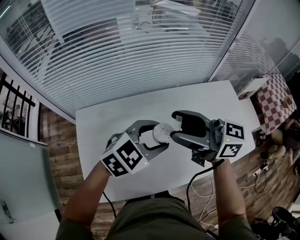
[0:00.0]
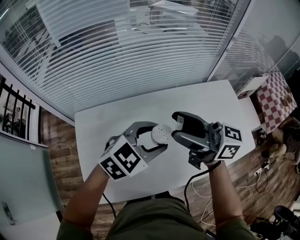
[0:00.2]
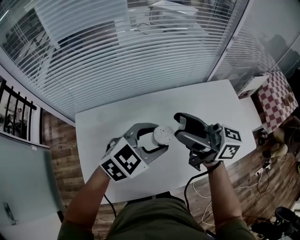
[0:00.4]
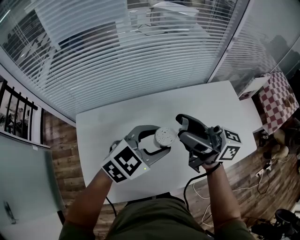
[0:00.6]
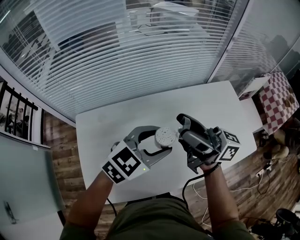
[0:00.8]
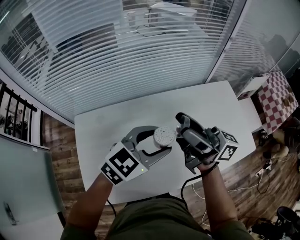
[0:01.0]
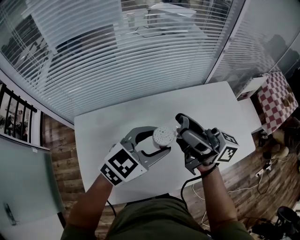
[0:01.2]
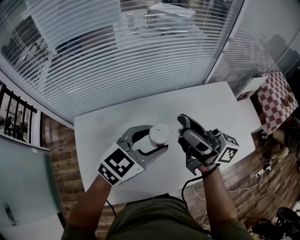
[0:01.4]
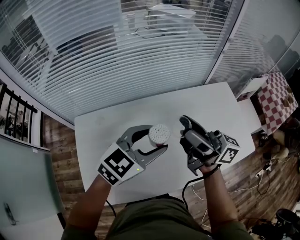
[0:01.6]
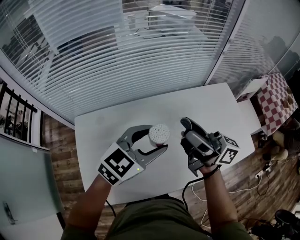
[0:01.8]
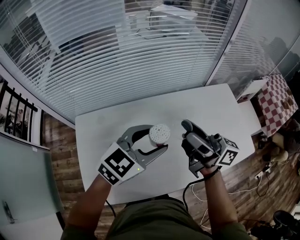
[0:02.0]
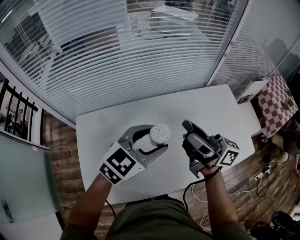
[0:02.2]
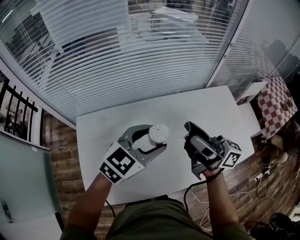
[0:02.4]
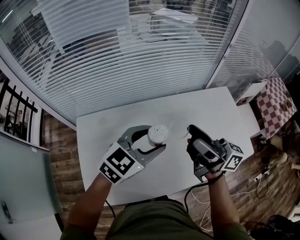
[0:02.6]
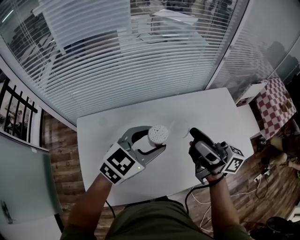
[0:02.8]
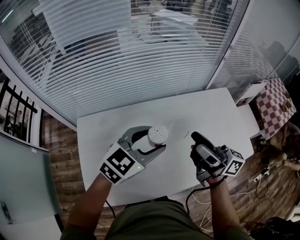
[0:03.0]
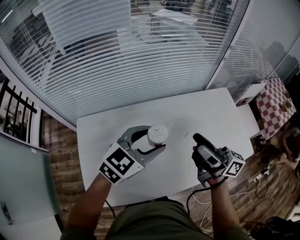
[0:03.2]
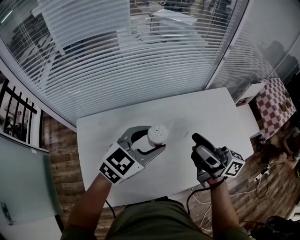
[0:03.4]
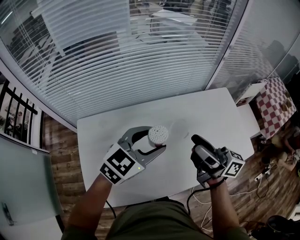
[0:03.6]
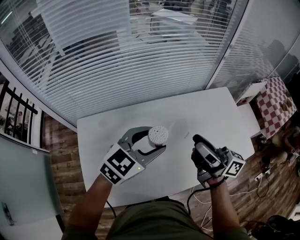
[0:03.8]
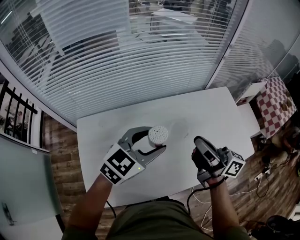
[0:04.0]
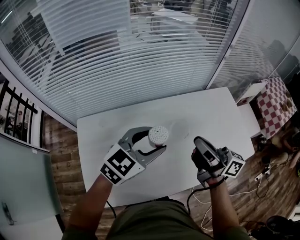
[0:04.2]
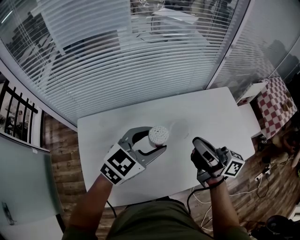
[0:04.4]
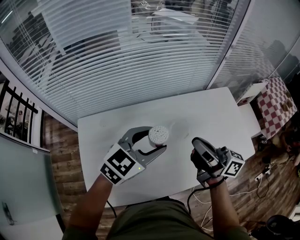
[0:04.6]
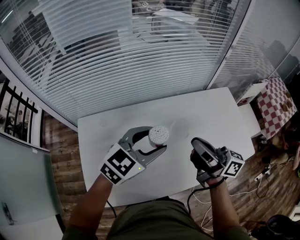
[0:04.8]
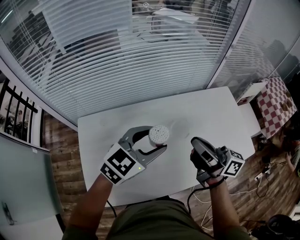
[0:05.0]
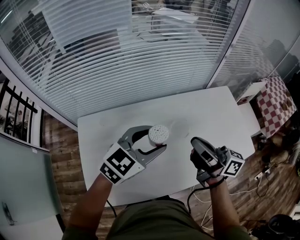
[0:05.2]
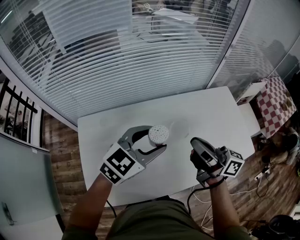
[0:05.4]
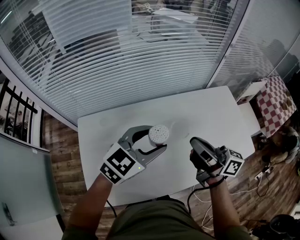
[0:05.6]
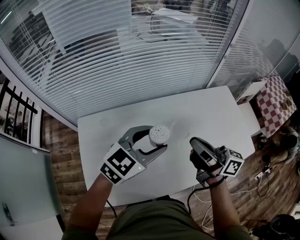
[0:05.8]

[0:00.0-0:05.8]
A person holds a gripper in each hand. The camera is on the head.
0:00.0 to 0:01.4: The right gripper shifts by about 5 cm, and rotates roughly 30 degrees.
0:01.4 to 0:02.8: The grippers stay close to where they were, moving slightly.
0:02.8 to 0:04.4: The right gripper closes.
0:04.4 to 0:05.8: The grippers stay close to where they were, moving slightly.

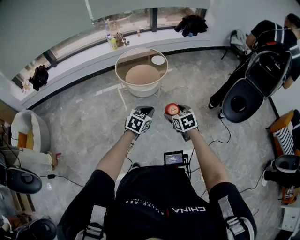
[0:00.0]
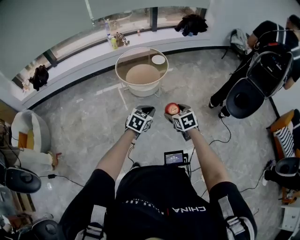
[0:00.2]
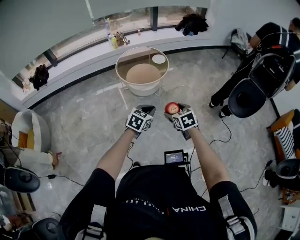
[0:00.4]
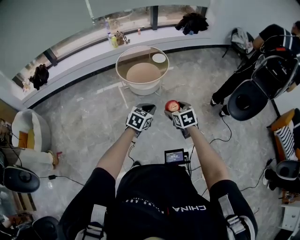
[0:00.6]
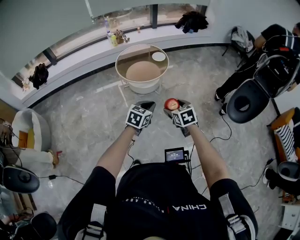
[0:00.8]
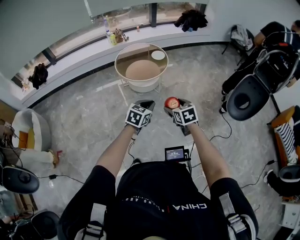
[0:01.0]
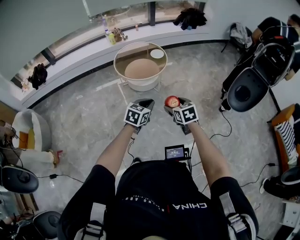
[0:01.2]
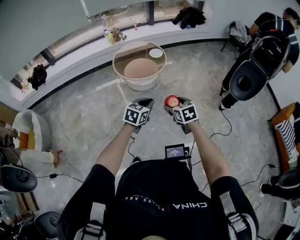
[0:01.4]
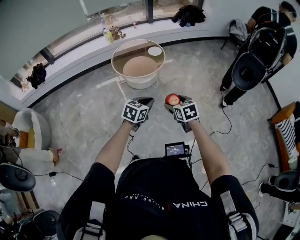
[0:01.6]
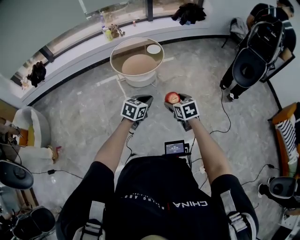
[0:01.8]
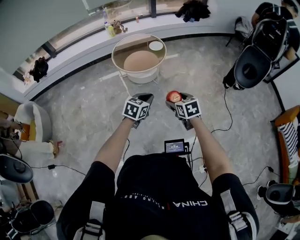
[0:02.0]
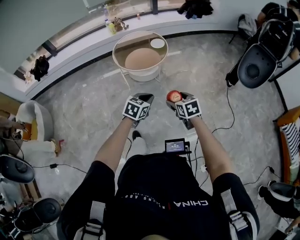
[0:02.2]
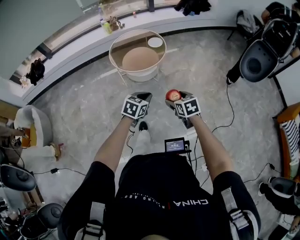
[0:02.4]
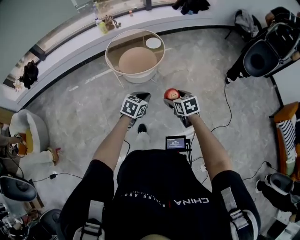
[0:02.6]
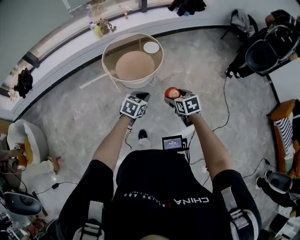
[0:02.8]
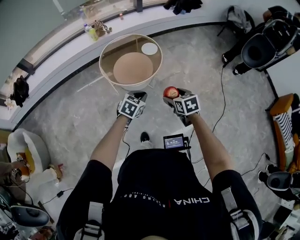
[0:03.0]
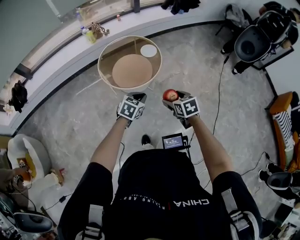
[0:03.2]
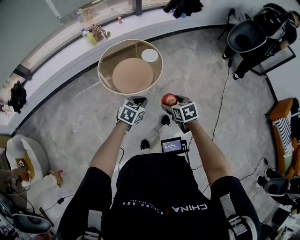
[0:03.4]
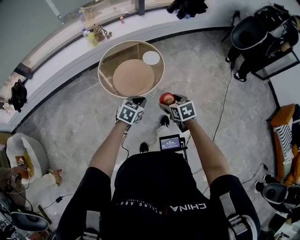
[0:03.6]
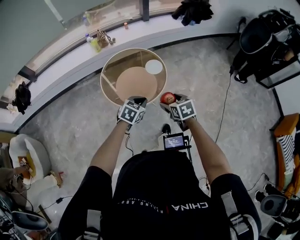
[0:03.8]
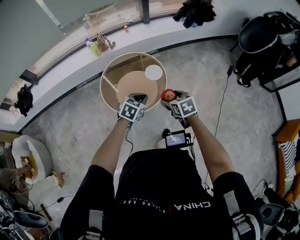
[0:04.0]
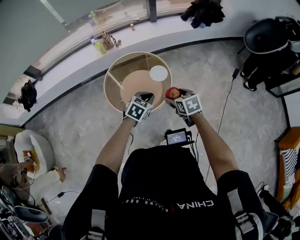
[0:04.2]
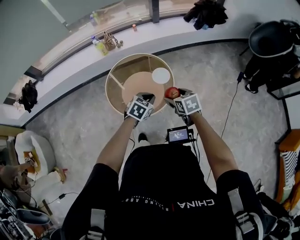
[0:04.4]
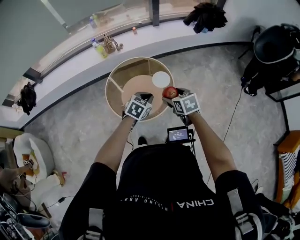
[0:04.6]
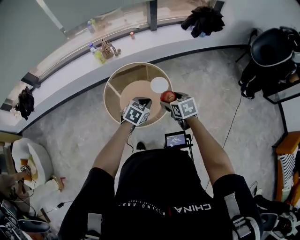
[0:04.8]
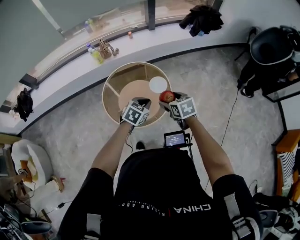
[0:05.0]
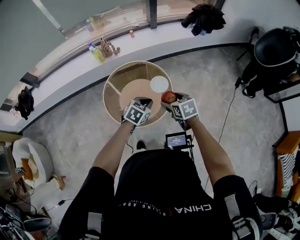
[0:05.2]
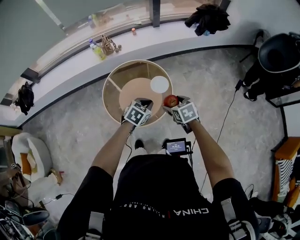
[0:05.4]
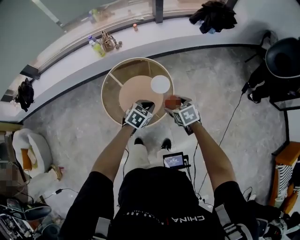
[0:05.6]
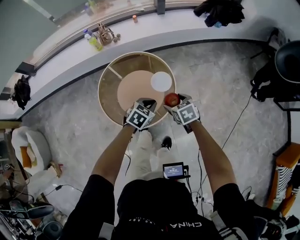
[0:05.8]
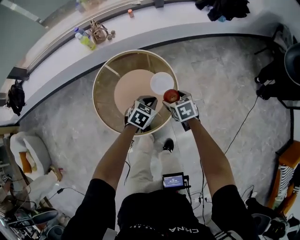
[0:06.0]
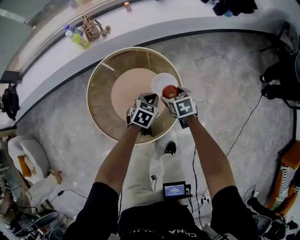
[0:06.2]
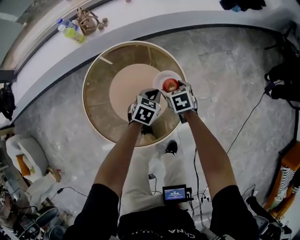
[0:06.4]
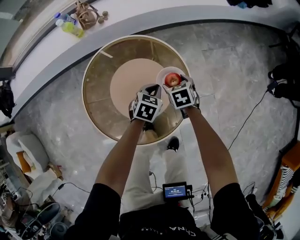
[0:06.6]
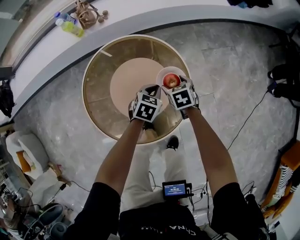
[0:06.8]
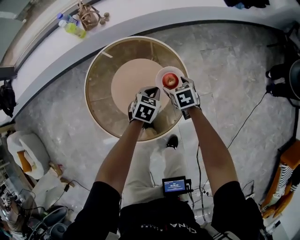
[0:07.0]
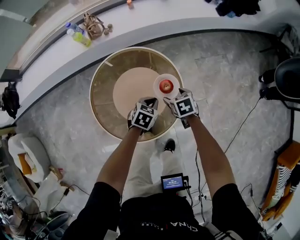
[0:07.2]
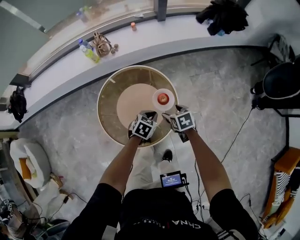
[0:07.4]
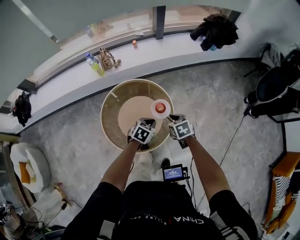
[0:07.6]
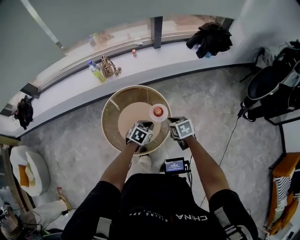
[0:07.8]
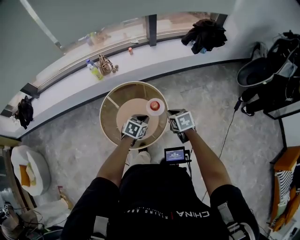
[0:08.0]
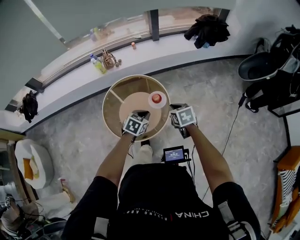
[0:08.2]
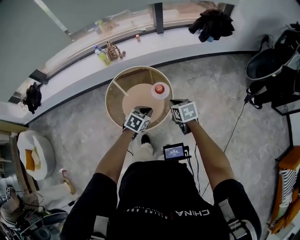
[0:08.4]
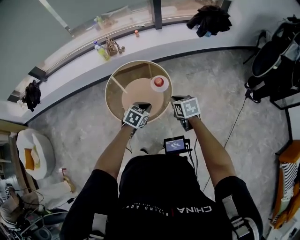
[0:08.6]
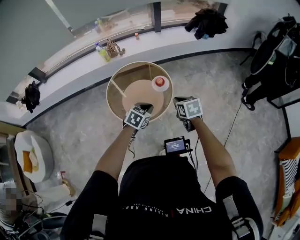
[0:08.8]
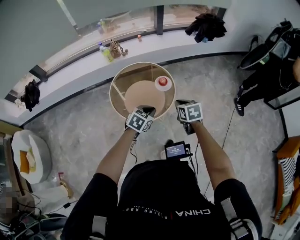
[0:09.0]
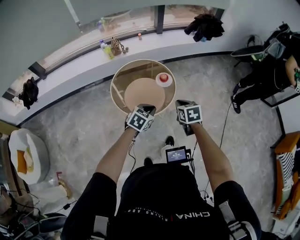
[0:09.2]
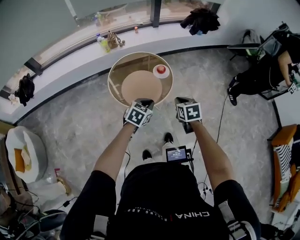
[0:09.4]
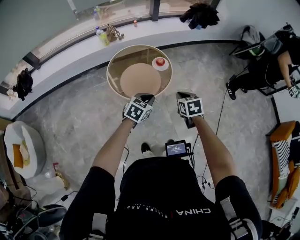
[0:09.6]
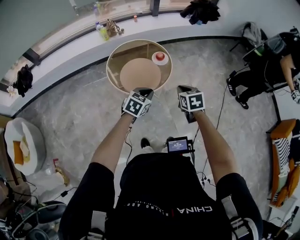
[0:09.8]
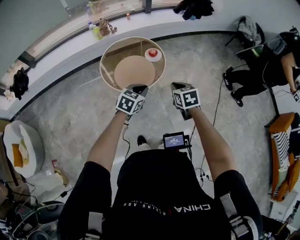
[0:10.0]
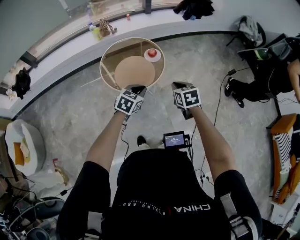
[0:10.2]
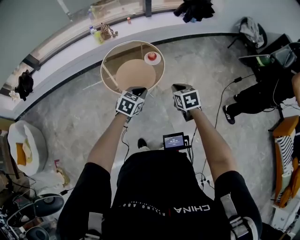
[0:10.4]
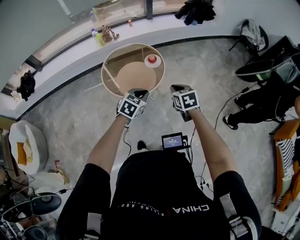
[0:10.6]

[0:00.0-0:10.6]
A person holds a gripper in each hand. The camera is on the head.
0:00.0 to 0:01.6: The grippers move only a little.
0:01.6 to 0:03.0: The grippers both shift forward by some 30 cm.
0:03.0 to 0:04.6: Both grippers travel together forward, about 40 cm.
0:04.6 to 0:06.0: The grippers both shift downward and forward by approximately 30 cm.
0:06.0 to 0:07.6: The left gripper goes downward and returns, roughly 20 cm each way; the right gripper shifts approximately 15 cm upward, and closes.
0:07.6 to 0:09.0: The right gripper travels backward and upward by roughly 30 cm; the left gripper shifts some 30 cm backward.
0:09.0 to 0:10.6: Both grippers move backward and to the right, roughly 15 cm.

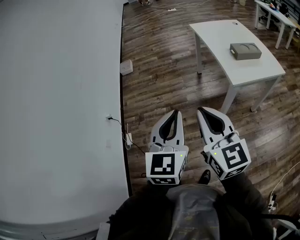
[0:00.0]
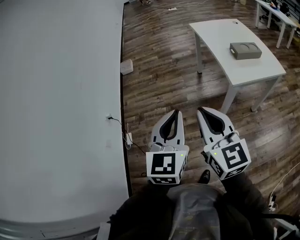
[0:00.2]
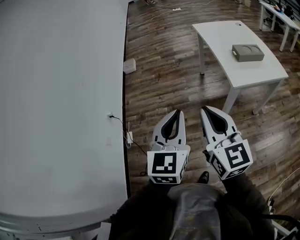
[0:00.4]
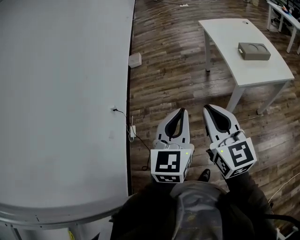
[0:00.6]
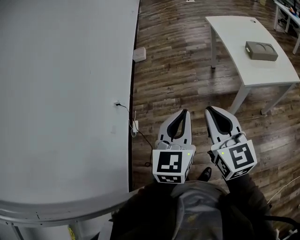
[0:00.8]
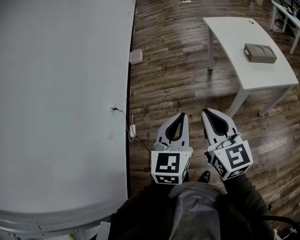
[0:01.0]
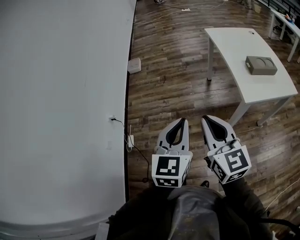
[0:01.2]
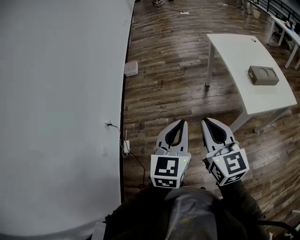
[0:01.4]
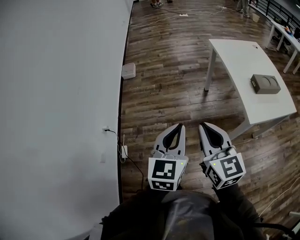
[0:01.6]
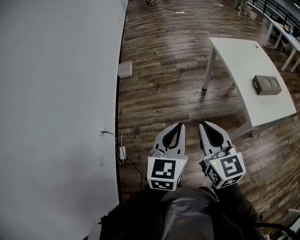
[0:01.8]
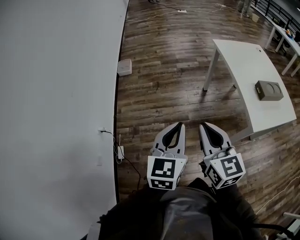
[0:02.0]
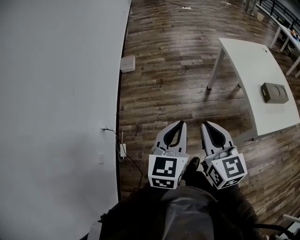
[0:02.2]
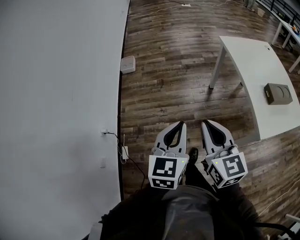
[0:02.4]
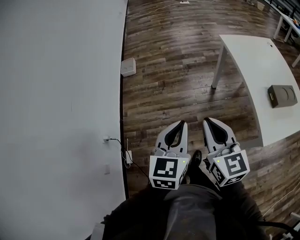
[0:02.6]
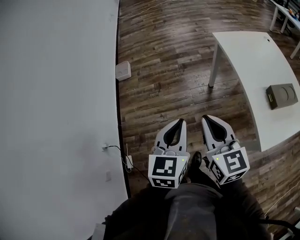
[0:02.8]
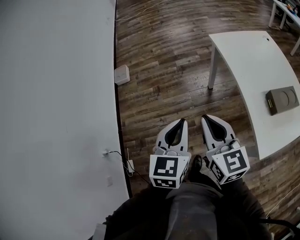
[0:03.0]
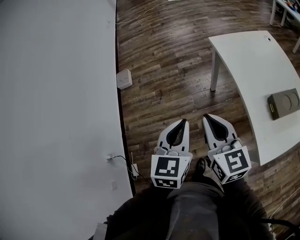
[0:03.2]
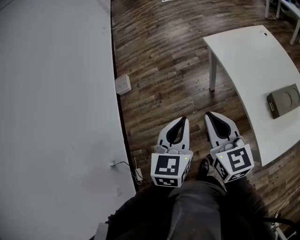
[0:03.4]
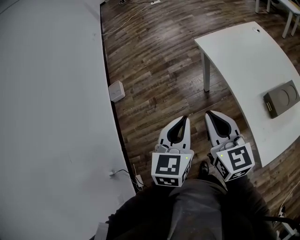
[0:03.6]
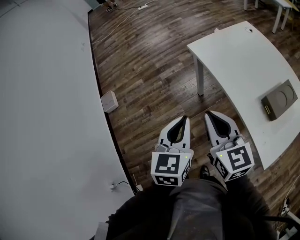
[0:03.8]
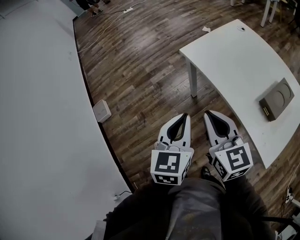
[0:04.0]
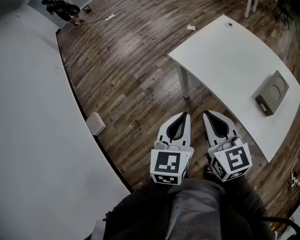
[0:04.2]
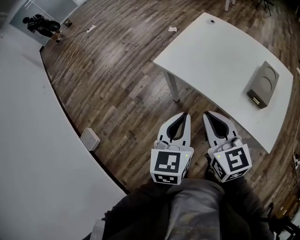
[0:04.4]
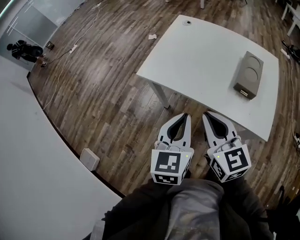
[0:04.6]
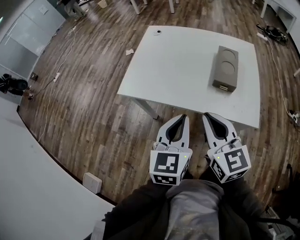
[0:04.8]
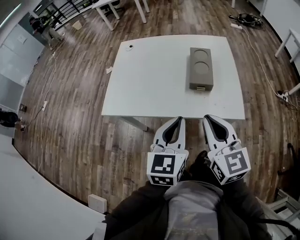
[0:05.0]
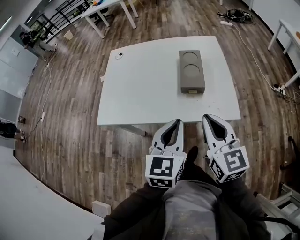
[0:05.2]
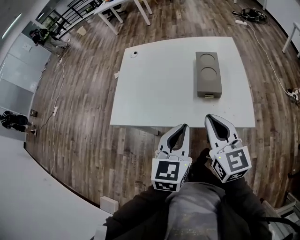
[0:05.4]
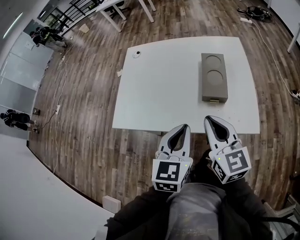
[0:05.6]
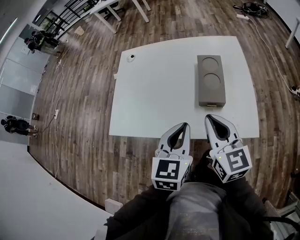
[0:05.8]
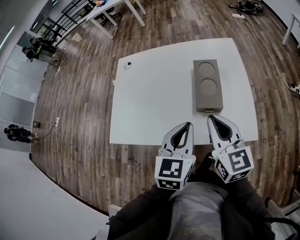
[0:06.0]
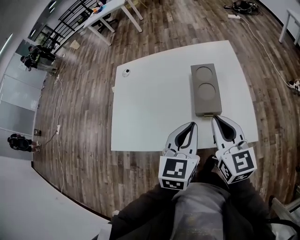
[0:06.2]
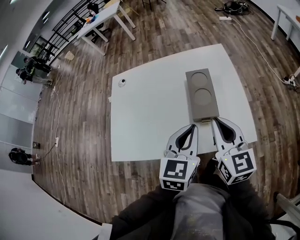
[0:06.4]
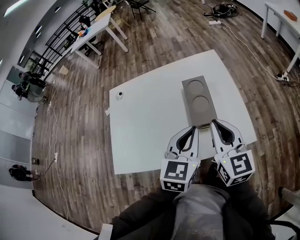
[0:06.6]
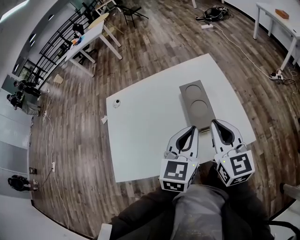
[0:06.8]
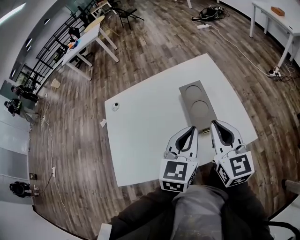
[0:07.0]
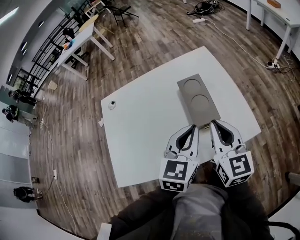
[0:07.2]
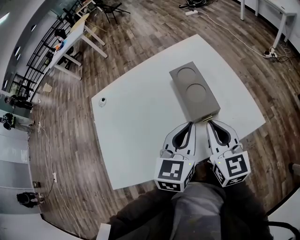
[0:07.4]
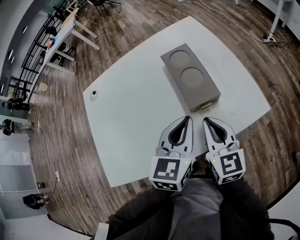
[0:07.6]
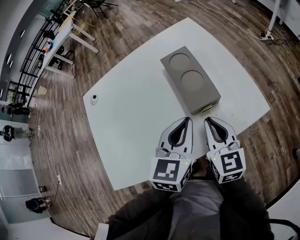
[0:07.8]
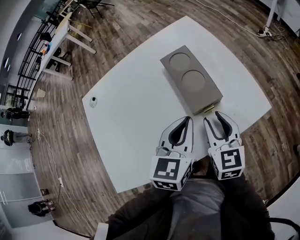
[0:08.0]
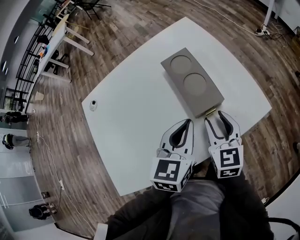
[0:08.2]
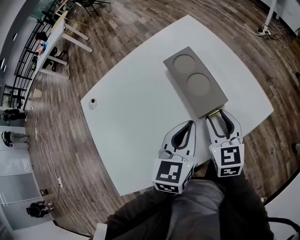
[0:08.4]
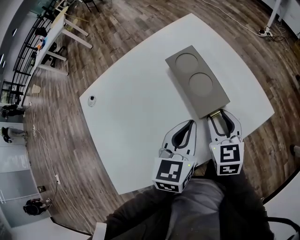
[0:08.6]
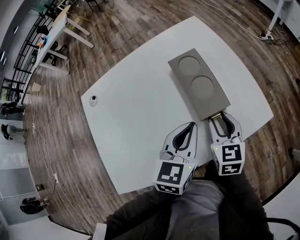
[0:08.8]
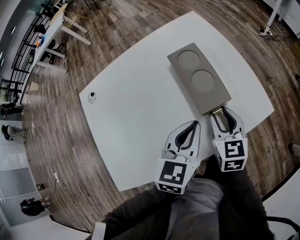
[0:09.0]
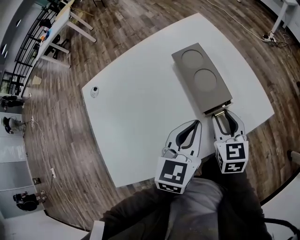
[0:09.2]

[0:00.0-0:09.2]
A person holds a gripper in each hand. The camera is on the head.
0:00.0 to 0:01.6: The two grippers go some 20 cm forward.
0:01.6 to 0:03.0: Both grippers move forward, some 30 cm.
0:03.0 to 0:04.6: The right gripper changes place by approximately 25 cm, and turns by roughly 50 degrees. Meanwhile the left gripper shifts by some 30 cm, and turns by approximately 50 degrees.
0:04.6 to 0:06.2: The right gripper changes place by roughly 25 cm, and turns by approximately 40 degrees; the left gripper changes place by approximately 25 cm, and swivels about 30 degrees.
0:06.2 to 0:07.6: The left gripper moves downward, approximately 10 cm, and swivels about 20 degrees. Meanwhile the right gripper shifts some 15 cm downward, and changes its angle by roughly 20 degrees.
0:07.6 to 0:09.2: The right gripper opens its fingers.
